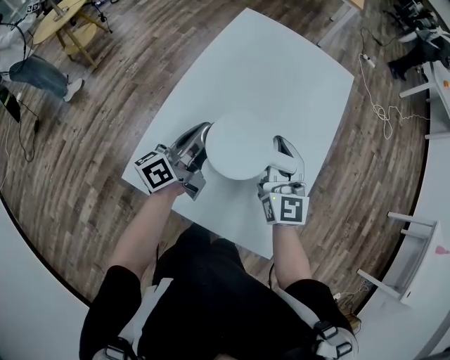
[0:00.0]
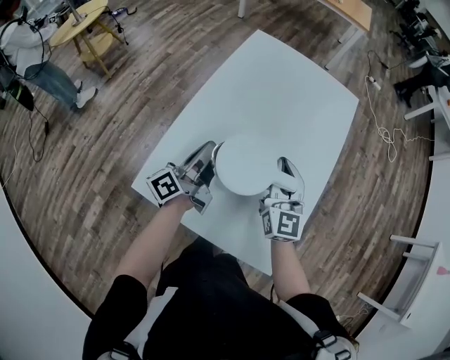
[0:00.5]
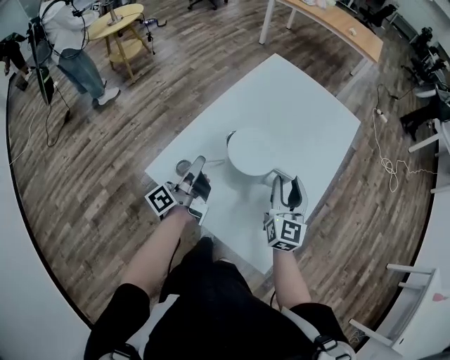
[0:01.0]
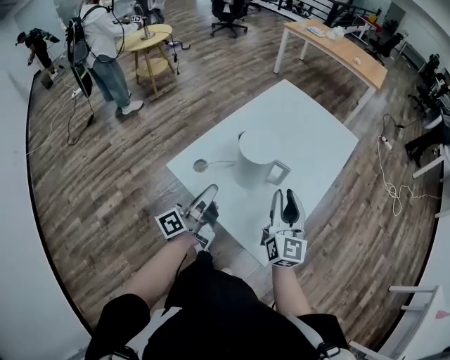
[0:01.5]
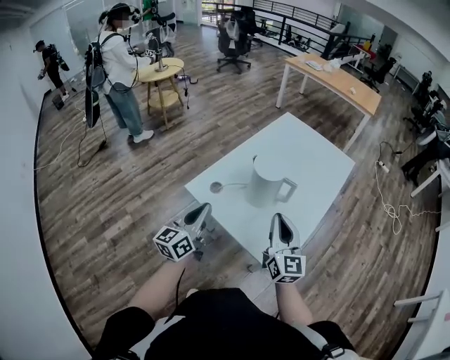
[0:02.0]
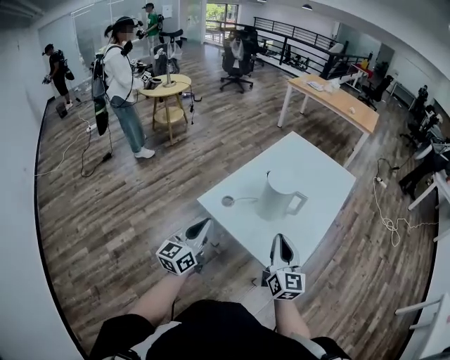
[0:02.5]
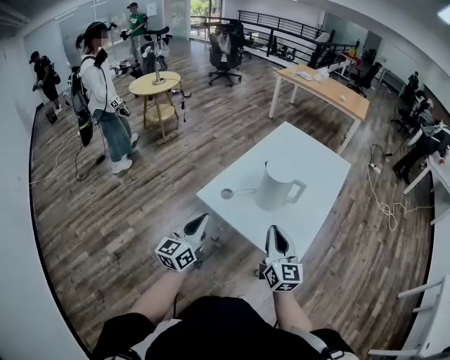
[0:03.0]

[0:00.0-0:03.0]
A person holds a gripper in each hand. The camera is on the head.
0:00.0 to 0:01.5: The right gripper shifts by some 15 cm, and opens up.
0:01.5 to 0:03.0: The right gripper changes place by roughly 15 cm, and closes its fingers.

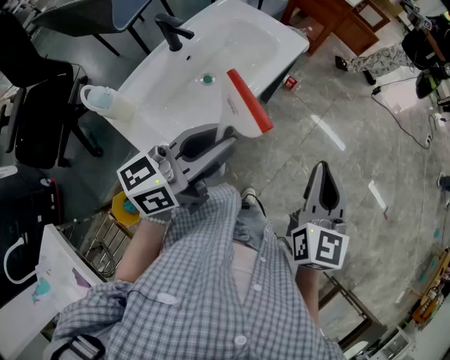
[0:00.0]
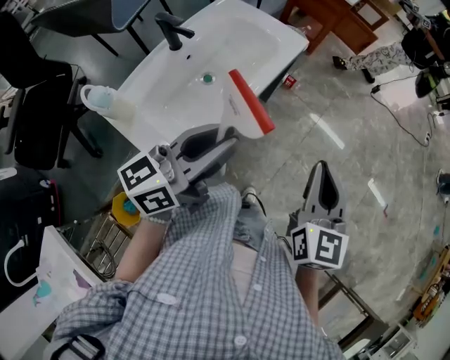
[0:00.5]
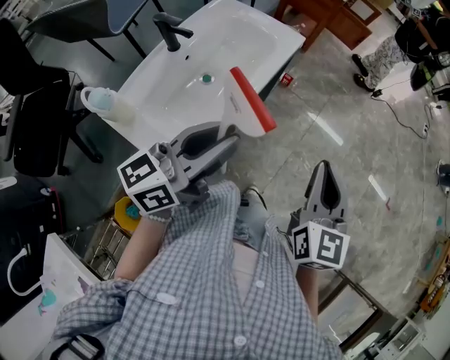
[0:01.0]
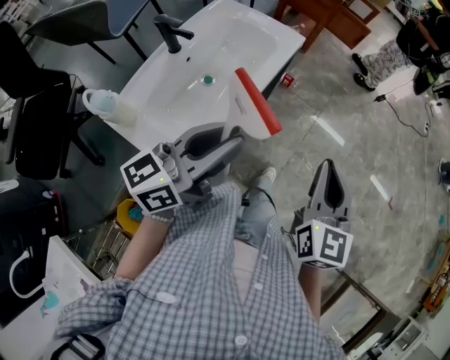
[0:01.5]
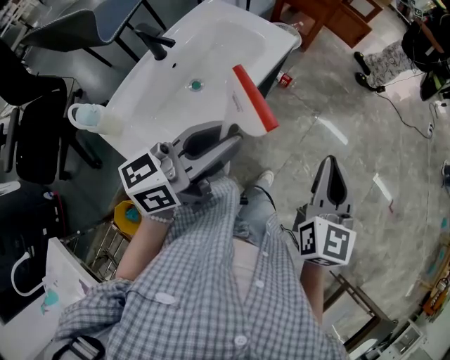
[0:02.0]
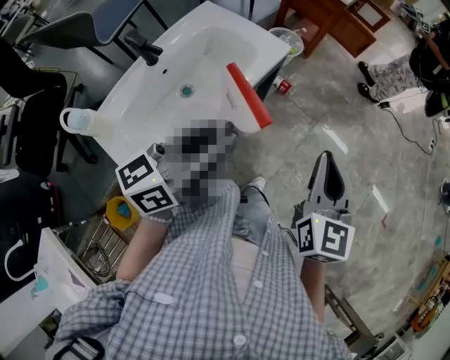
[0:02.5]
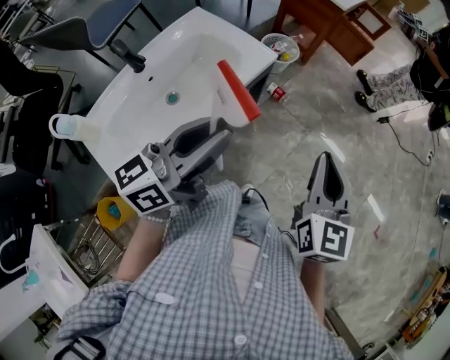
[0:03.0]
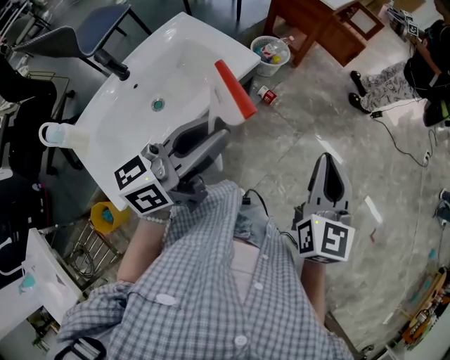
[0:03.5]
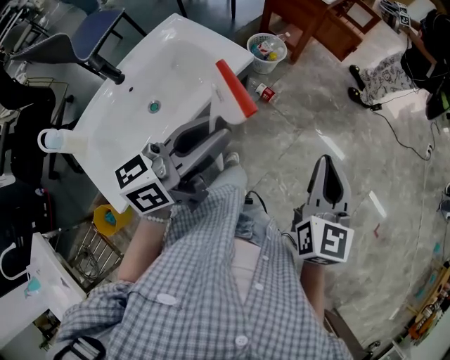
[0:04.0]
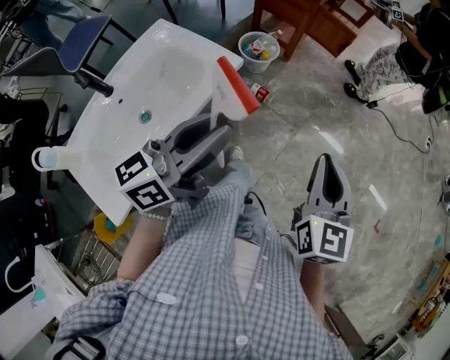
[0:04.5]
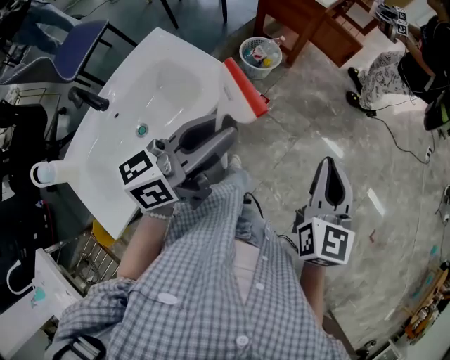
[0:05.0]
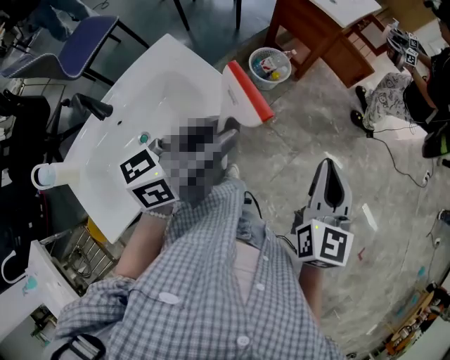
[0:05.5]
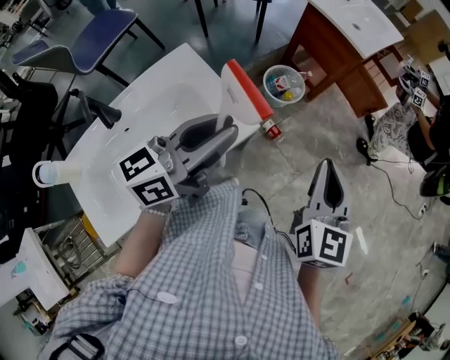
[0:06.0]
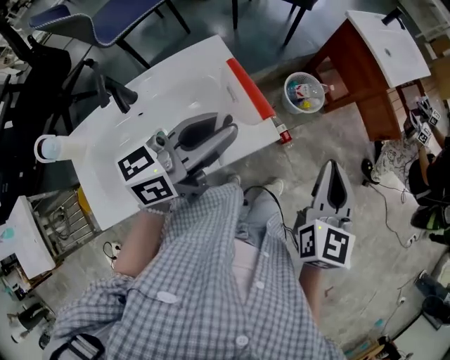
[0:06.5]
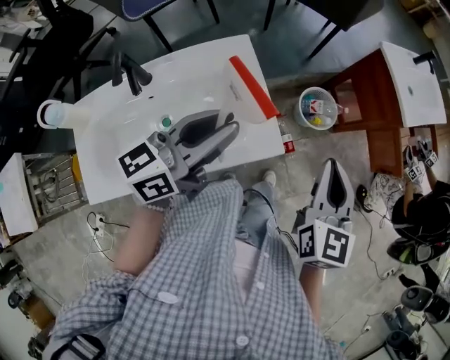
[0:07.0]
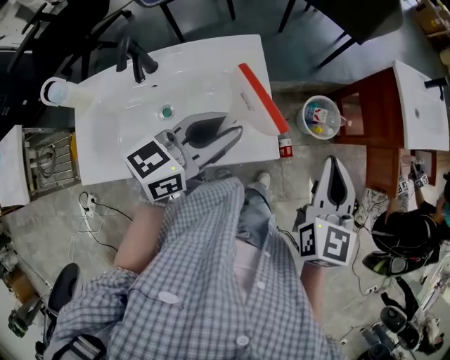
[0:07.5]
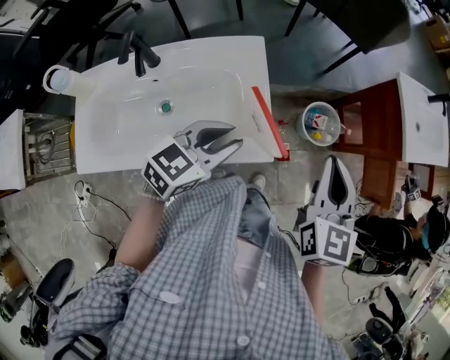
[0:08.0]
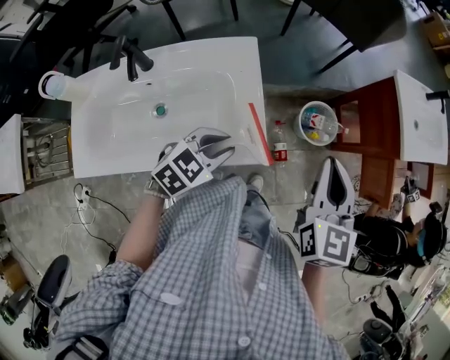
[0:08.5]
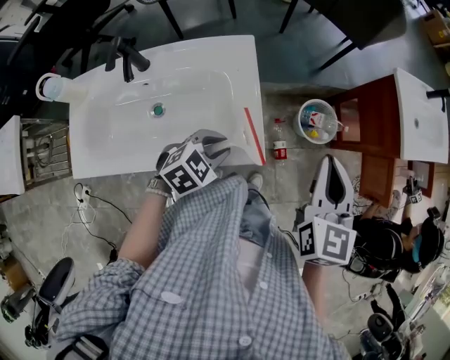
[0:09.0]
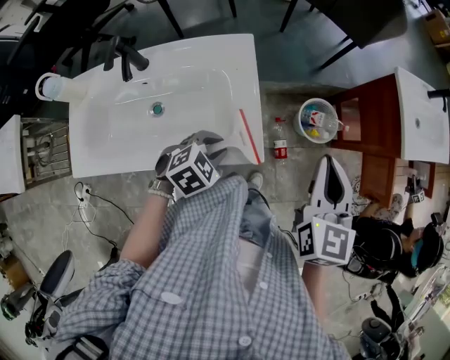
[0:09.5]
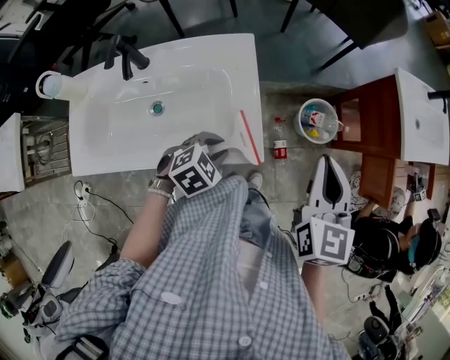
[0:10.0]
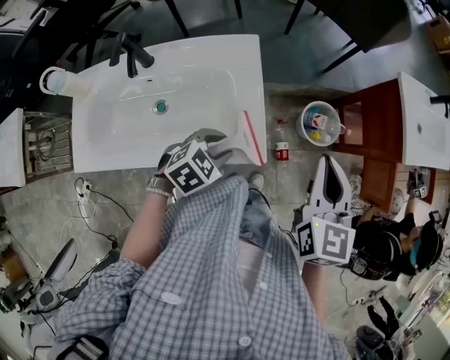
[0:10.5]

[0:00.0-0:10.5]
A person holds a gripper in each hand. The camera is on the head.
0:00.0 to 0:02.0: The left gripper ends up about 5 cm from where it was. The right gripper ends up about 5 cm from where it was.
0:02.0 to 0:04.0: The two grippers go approximately 20 cm forward and to the right.
0:04.0 to 0:06.5: Both grippers travel together forward and to the left, some 30 cm.
0:06.5 to 0:08.5: The right gripper shifts roughly 15 cm forward, and swivels roughly 30 degrees. The left gripper moves downward, roughly 20 cm, and tips its fingers downward by about 40 degrees.

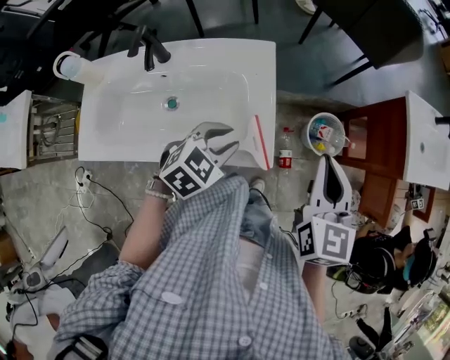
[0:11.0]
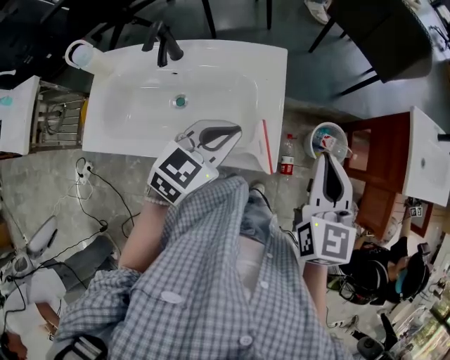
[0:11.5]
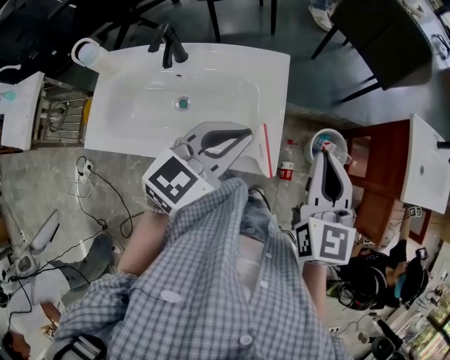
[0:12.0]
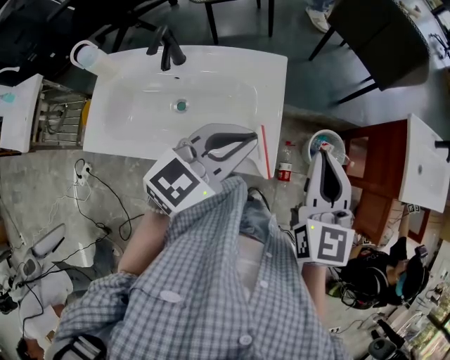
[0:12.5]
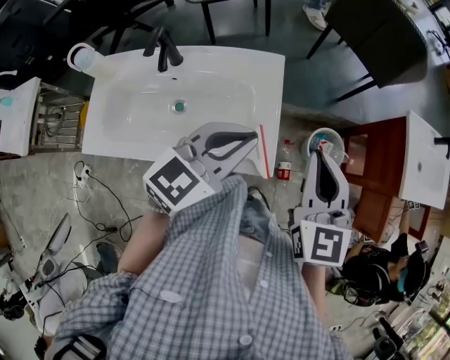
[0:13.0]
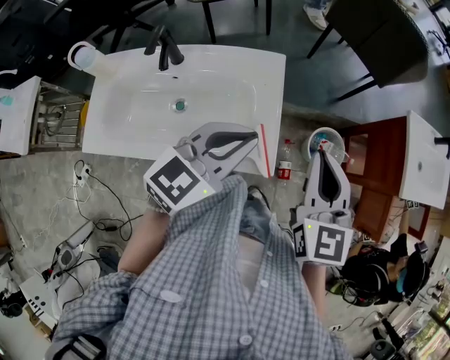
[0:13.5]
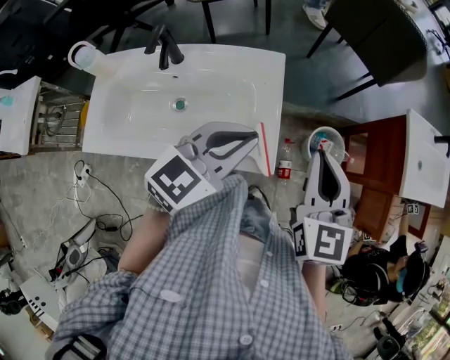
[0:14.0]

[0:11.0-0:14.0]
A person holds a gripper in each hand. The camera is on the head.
0:11.0 to 0:12.5: The left gripper goes about 15 cm upward, tilts its fingers some 30 degrees upward, and closes its fingers, while the right gripper ends up roughly 5 cm from where it was.
0:12.5 to 0:14.0: Both grippers stay put.

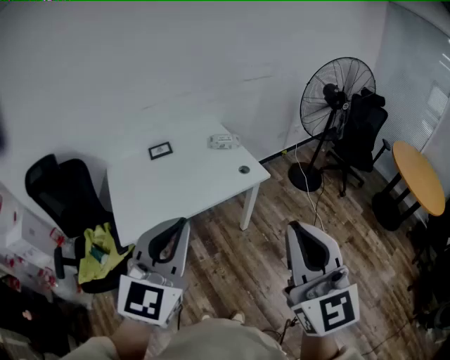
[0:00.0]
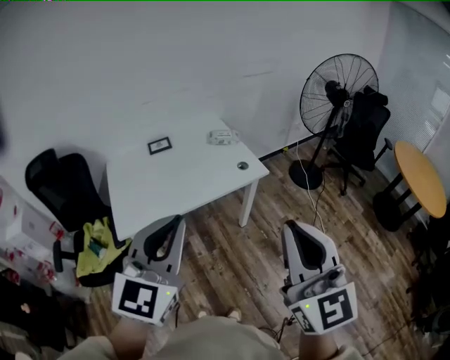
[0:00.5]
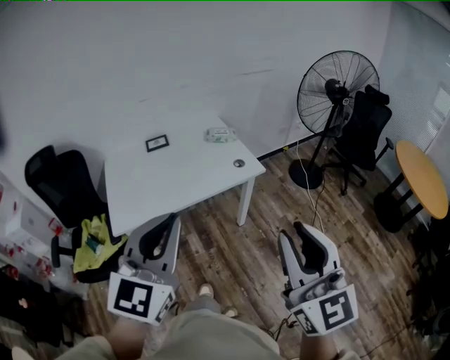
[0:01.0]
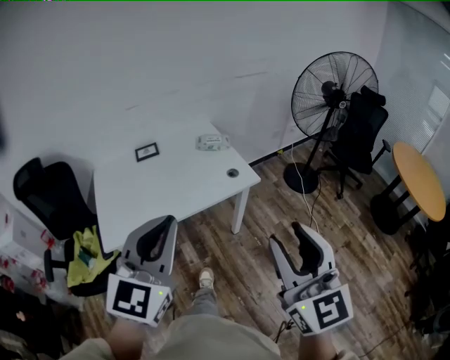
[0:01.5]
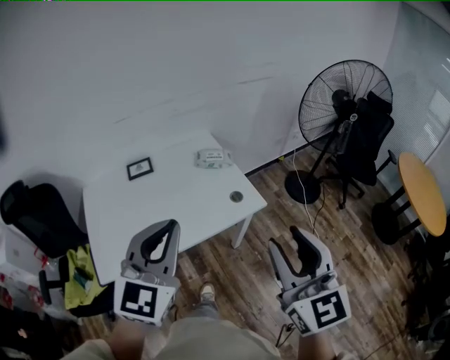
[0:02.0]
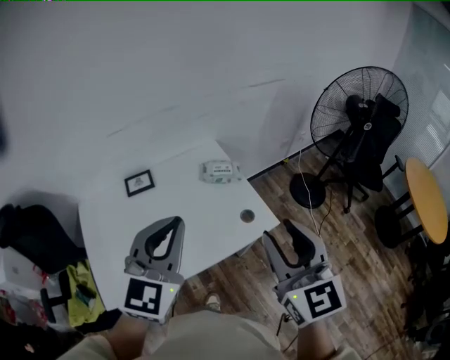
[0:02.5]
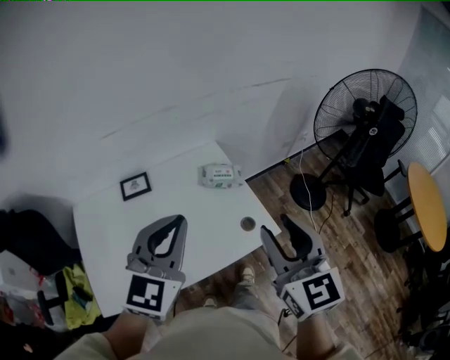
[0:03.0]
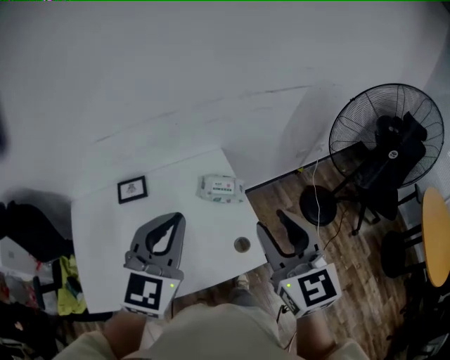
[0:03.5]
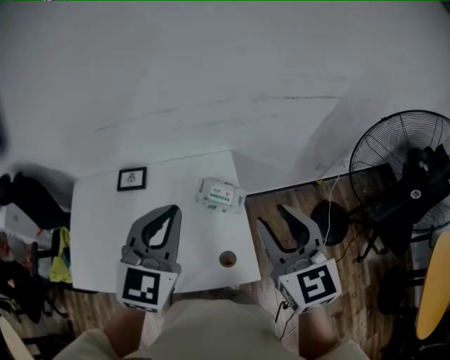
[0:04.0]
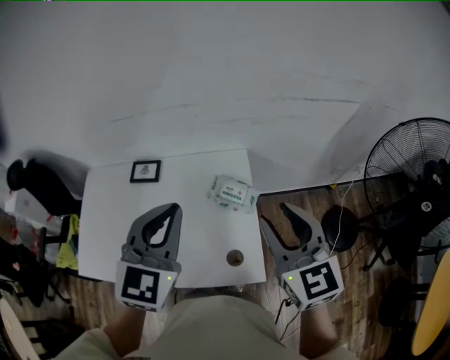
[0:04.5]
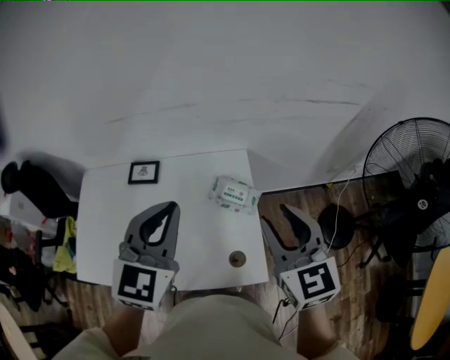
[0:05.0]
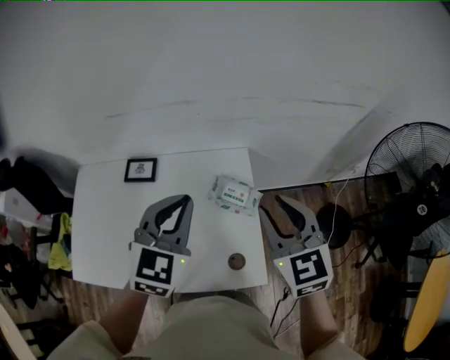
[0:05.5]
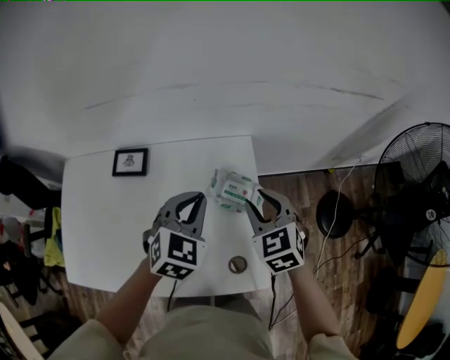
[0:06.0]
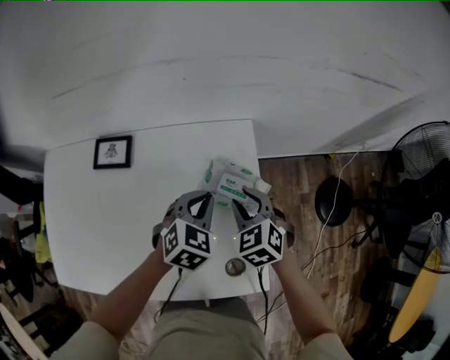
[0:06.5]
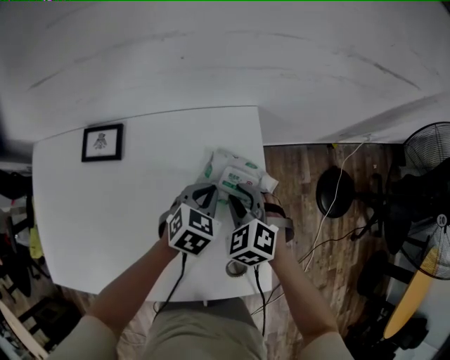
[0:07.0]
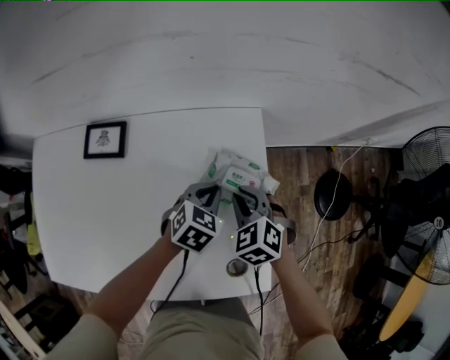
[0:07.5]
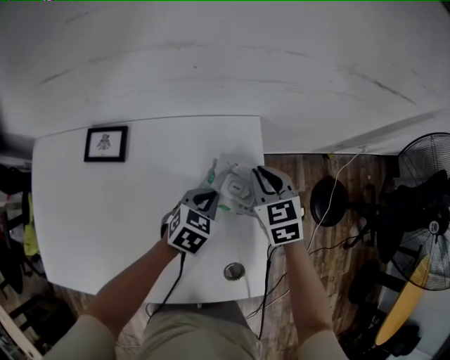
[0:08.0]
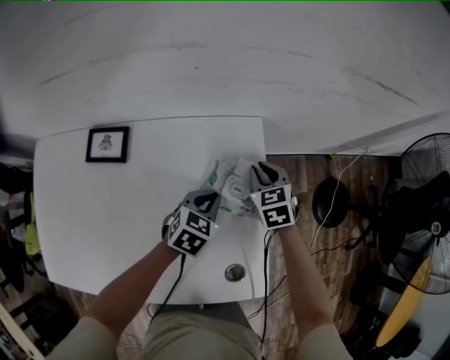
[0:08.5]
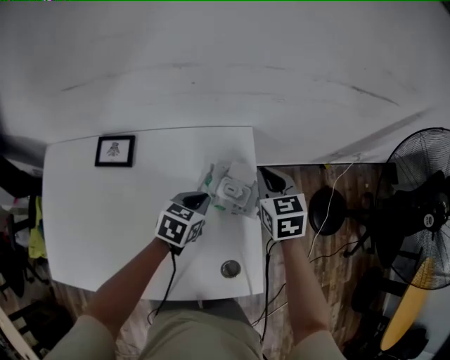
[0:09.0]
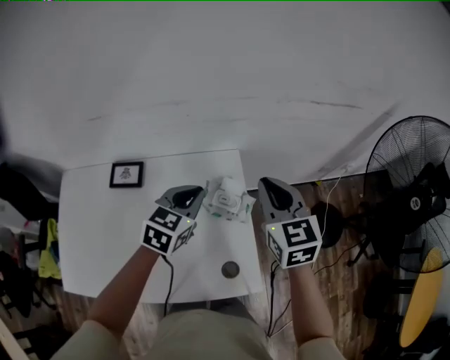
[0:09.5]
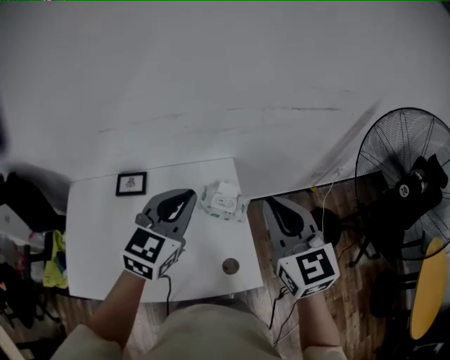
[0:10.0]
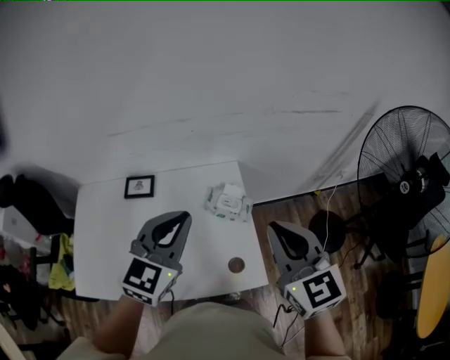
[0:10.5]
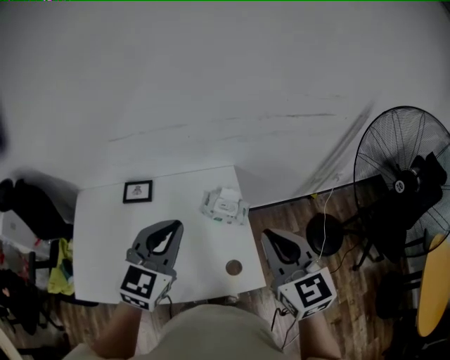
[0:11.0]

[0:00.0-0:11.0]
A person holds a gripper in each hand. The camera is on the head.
0:00.0 to 0:02.0: The two grippers go some 25 cm forward. The right gripper opens its fingers.
0:02.0 to 0:03.5: Both grippers move forward, some 30 cm.
0:03.5 to 0:05.5: The left gripper goes approximately 15 cm forward and downward. Meanwhile the right gripper heads forward, covering roughly 15 cm, and swivels approximately 20 degrees.
0:05.5 to 0:07.5: Both grippers travel together downward, about 35 cm. The left gripper swivels roughly 40 degrees; the right gripper tips its fingers downward by roughly 30 degrees.
0:07.5 to 0:09.0: The right gripper moves up and down over some 10 cm, changing direction 2 times, and changes its angle by roughly 40 degrees.
0:09.0 to 0:11.0: Both grippers travel together upward and backward, roughly 40 cm. The left gripper tilts its fingers some 30 degrees upward. The right gripper changes its angle by approximately 20 degrees.
